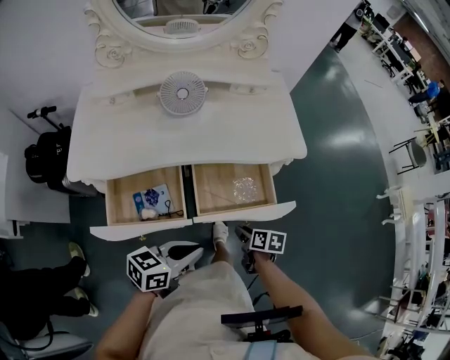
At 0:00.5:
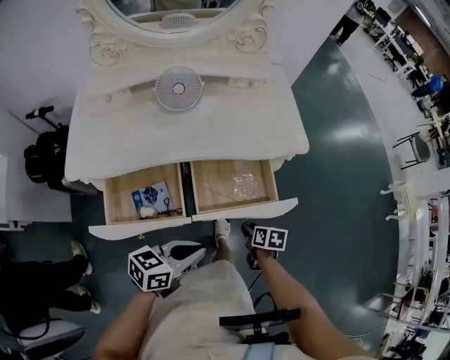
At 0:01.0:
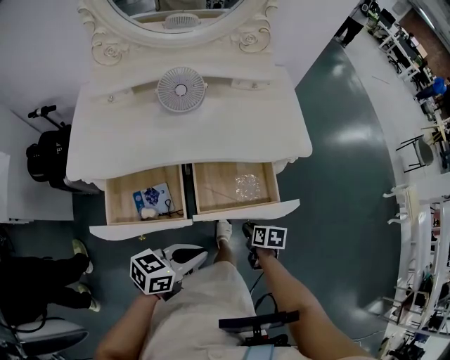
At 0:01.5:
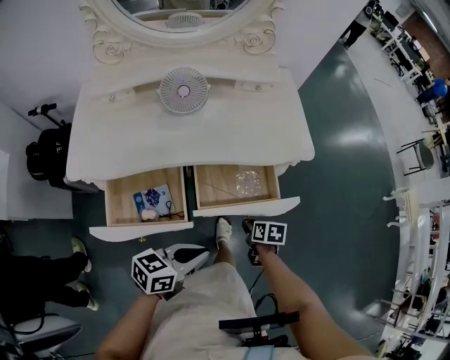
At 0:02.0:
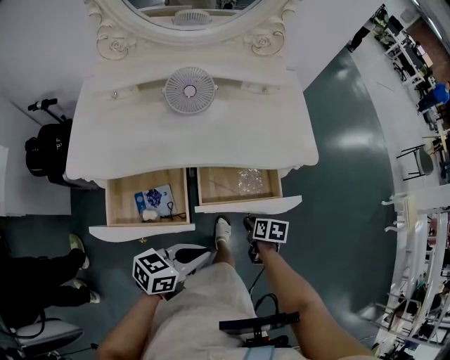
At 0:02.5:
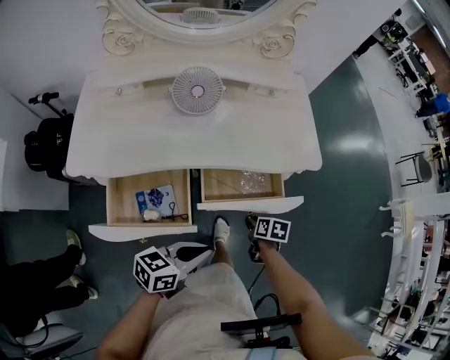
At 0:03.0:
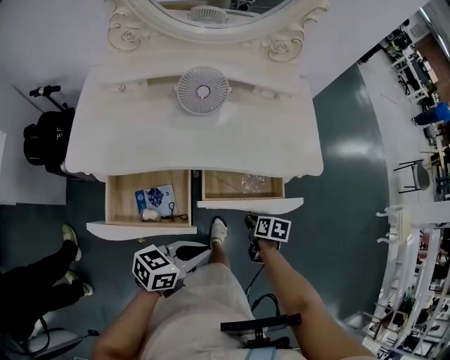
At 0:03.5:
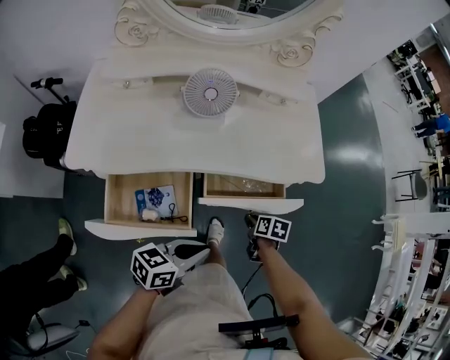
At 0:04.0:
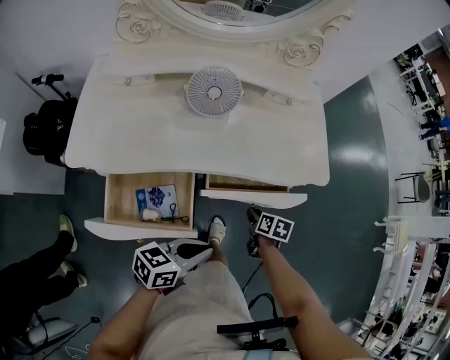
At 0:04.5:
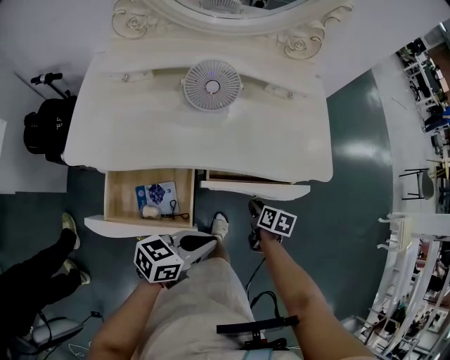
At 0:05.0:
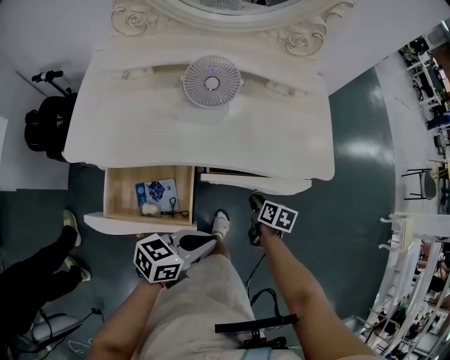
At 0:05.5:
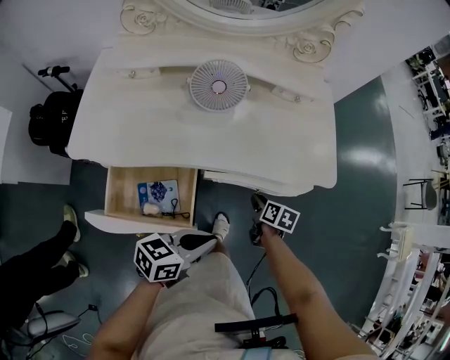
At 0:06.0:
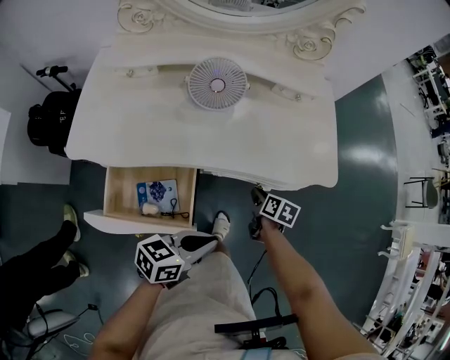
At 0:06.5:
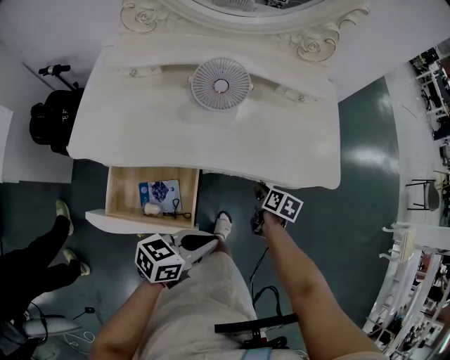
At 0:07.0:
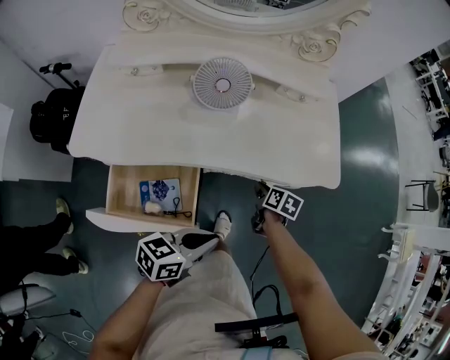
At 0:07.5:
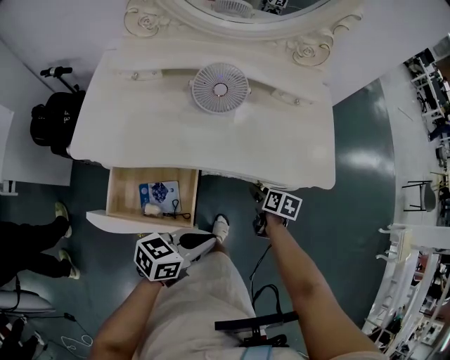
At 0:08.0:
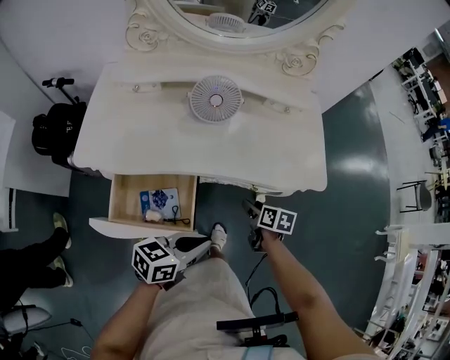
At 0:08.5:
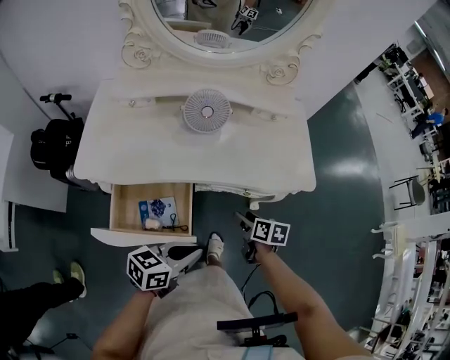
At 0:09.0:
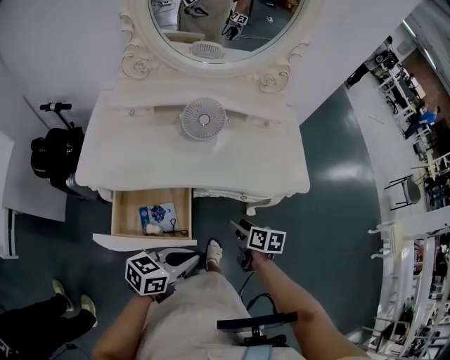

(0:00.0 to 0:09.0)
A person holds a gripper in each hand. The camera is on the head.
0:00.0 - 0:02.0: The right gripper heads forward, covering approximately 5 cm.
0:02.0 - 0:04.5: The grippers both shift forward by about 5 cm.
0:04.5 - 0:07.0: The right gripper travels forward by some 5 cm.
0:07.0 - 0:09.0: The right gripper travels backward and upward by some 15 cm, and opens. Meanwhile the left gripper shifts some 5 cm backward.

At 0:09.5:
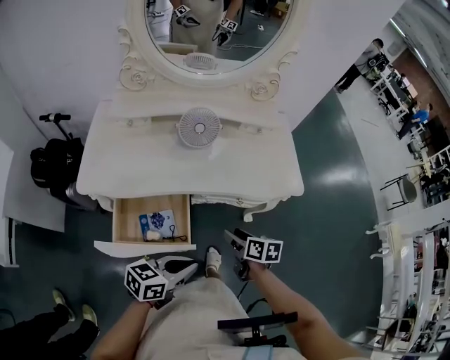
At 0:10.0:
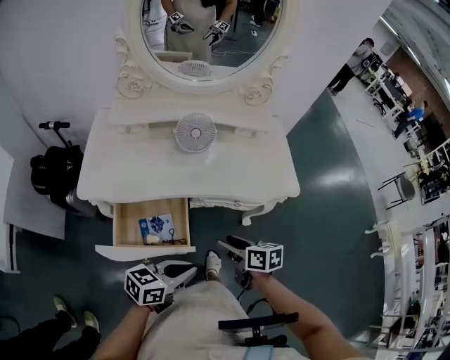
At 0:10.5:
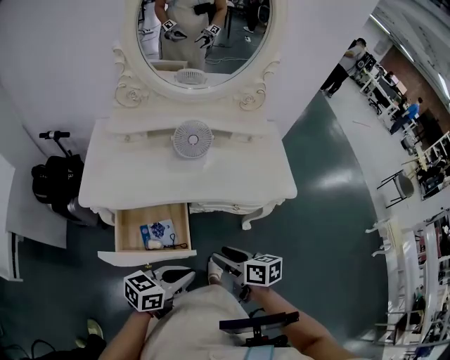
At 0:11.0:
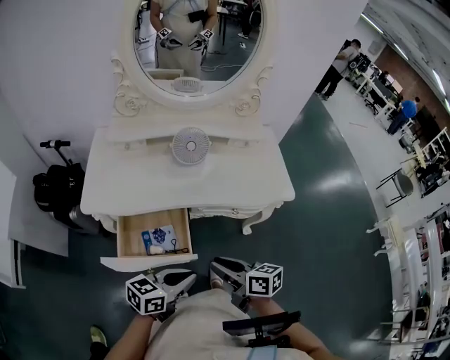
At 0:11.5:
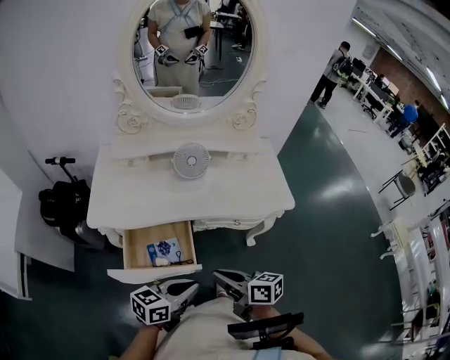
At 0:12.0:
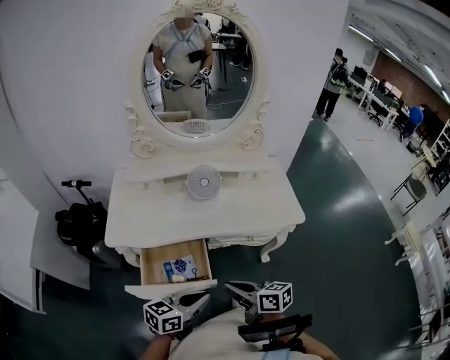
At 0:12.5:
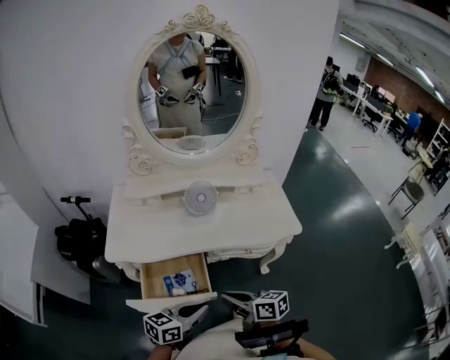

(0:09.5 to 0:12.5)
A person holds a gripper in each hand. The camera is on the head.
0:09.5 - 0:11.0: The right gripper moves upward, backward and to the left, roughly 15 cm, changes its angle by some 20 degrees, and closes up.
0:11.0 - 0:12.5: The right gripper closes.

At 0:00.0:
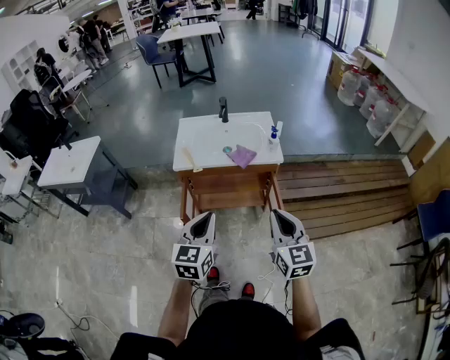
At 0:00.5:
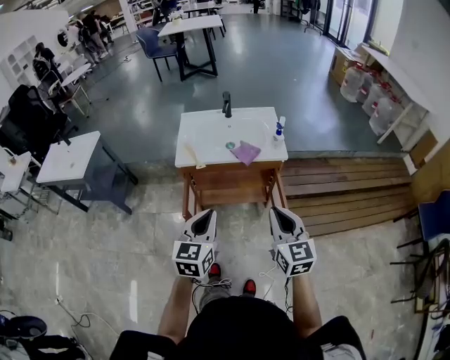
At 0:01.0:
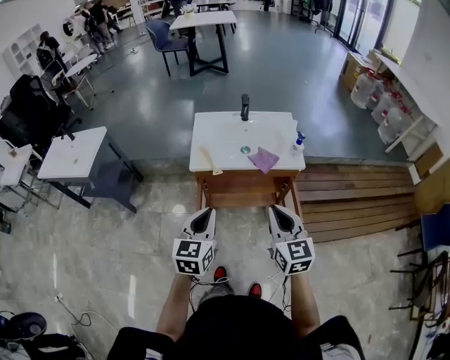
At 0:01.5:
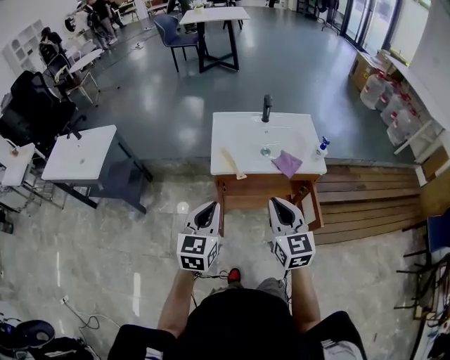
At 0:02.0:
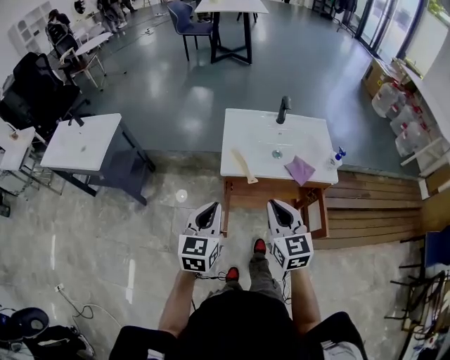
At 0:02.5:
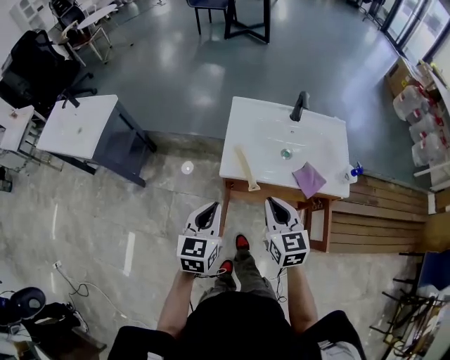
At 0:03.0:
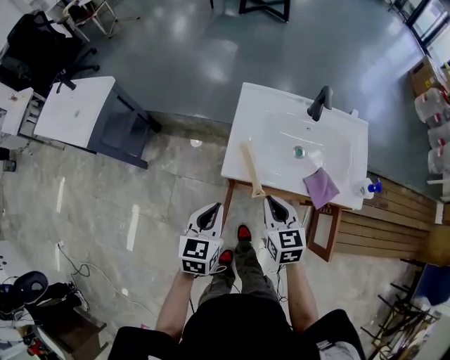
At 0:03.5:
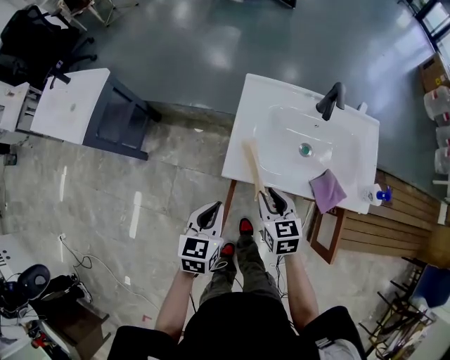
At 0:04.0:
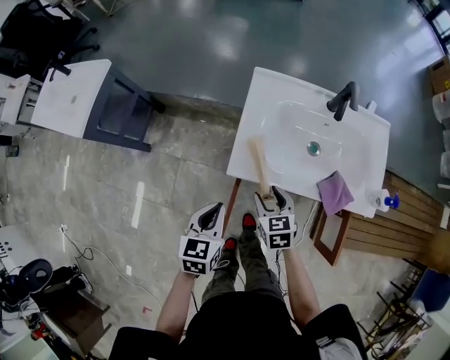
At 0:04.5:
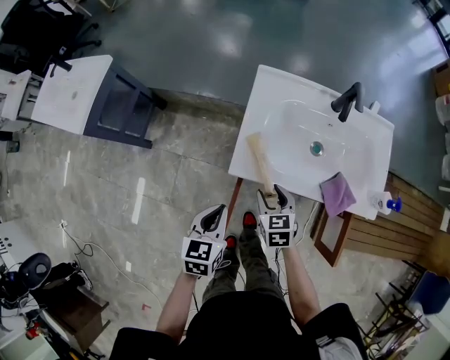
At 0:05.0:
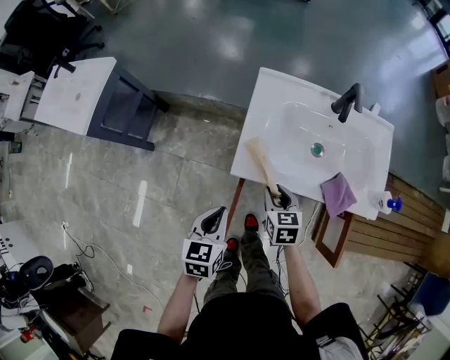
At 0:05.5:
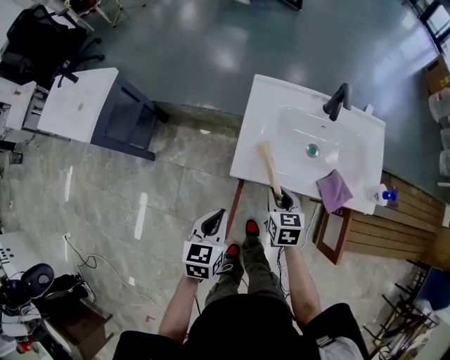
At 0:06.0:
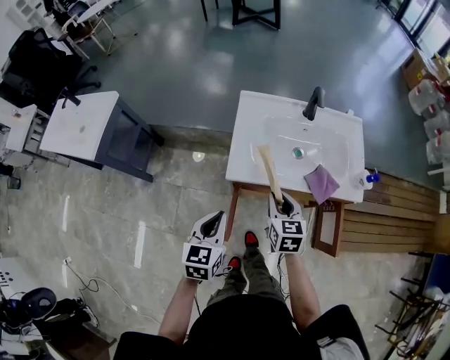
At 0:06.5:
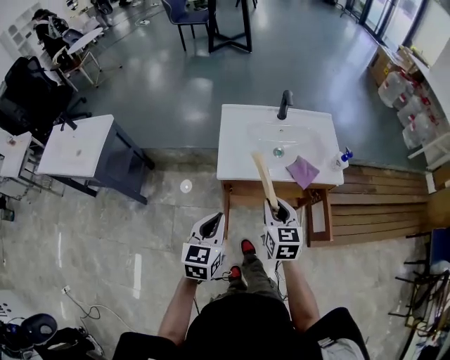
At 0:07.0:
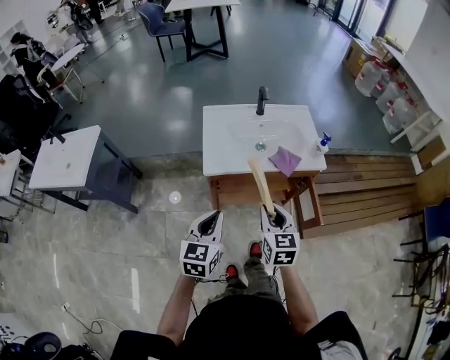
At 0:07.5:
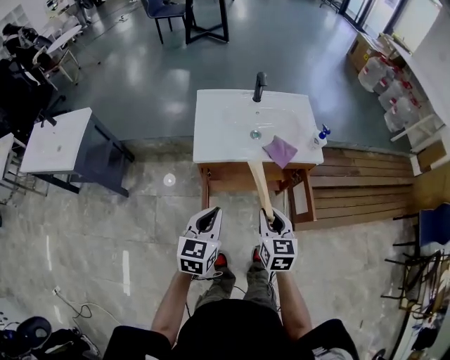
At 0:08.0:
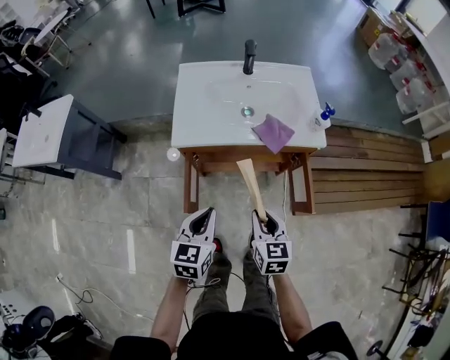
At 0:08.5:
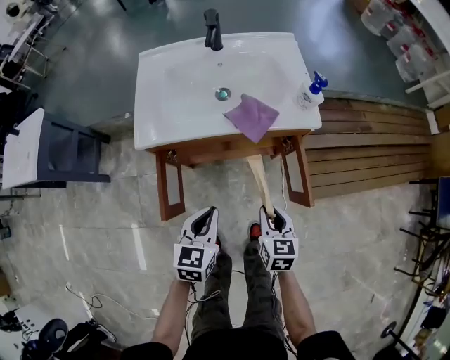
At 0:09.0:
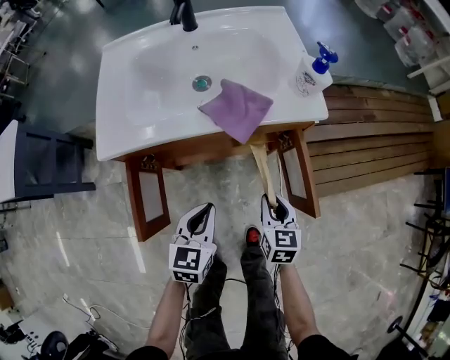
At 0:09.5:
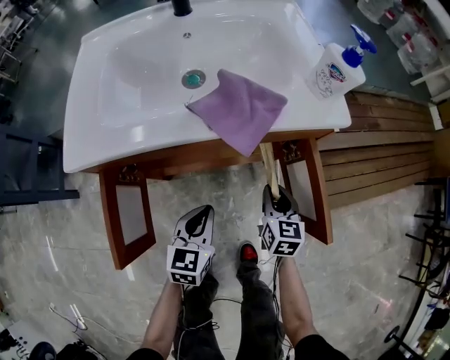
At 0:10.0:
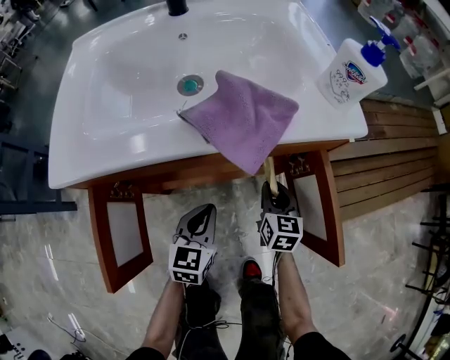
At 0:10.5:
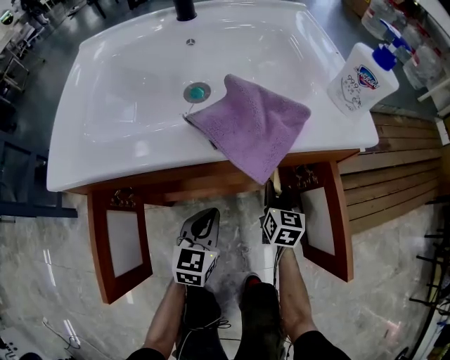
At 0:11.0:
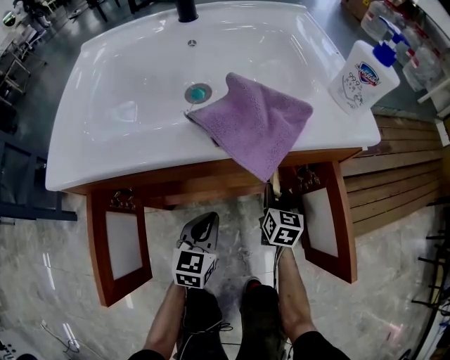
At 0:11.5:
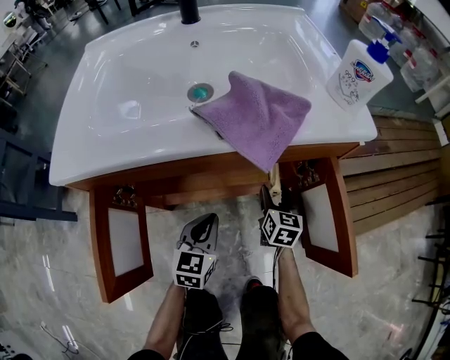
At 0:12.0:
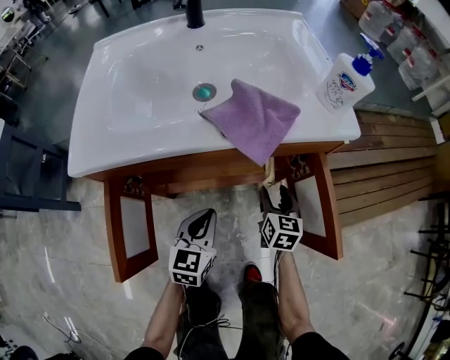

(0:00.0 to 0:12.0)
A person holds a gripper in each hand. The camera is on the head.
0:00.0 - 0:02.0: Both grippers travel together to the left and forward, about 30 cm.
0:02.0 - 0:04.0: The two grippers go approximately 30 cm downward and forward. The left gripper rotates roughly 20 degrees, while the right gripper tips its fingers downward by about 30 degrees, and opens up.
0:04.0 - 0:06.0: Both grippers move upward, approximately 10 cm. The right gripper rotates some 20 degrees, and closes its fingers.
0:06.0 - 0:08.0: The left gripper travels to the right and backward by about 15 cm. The right gripper goes roughly 25 cm backward and to the right.
0:08.0 - 0:10.0: Both grippers travel together downward and forward, roughly 40 cm.
0:10.0 - 0:12.0: The right gripper opens its fingers.

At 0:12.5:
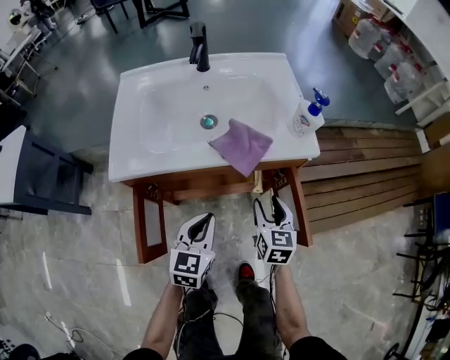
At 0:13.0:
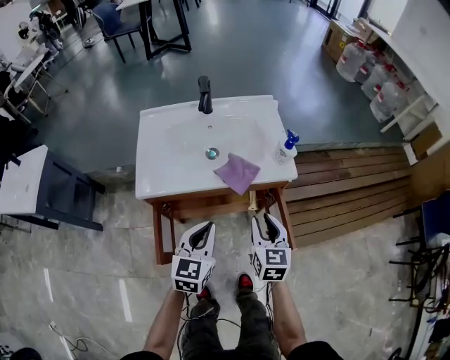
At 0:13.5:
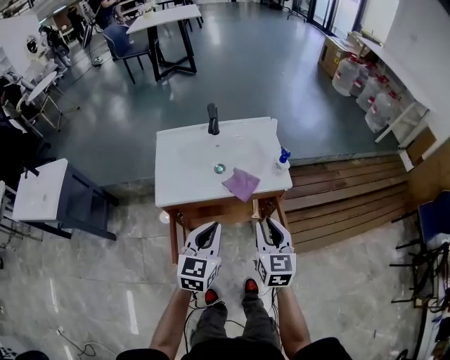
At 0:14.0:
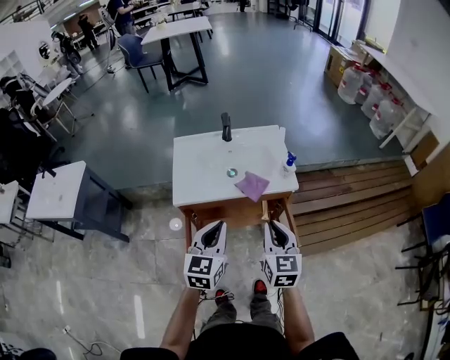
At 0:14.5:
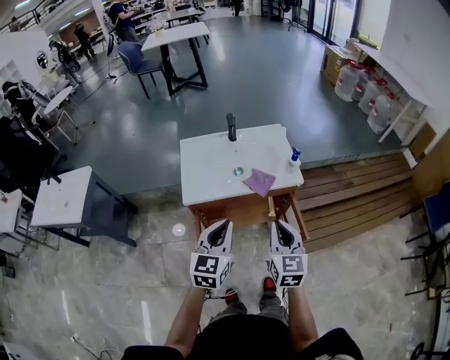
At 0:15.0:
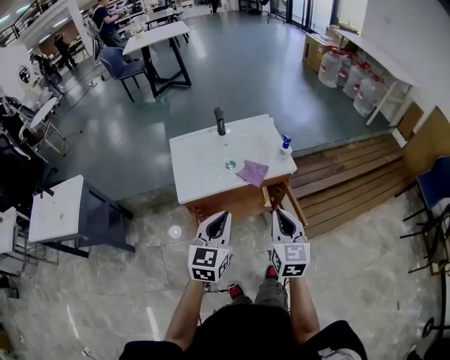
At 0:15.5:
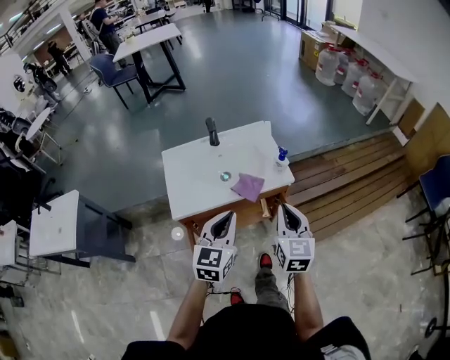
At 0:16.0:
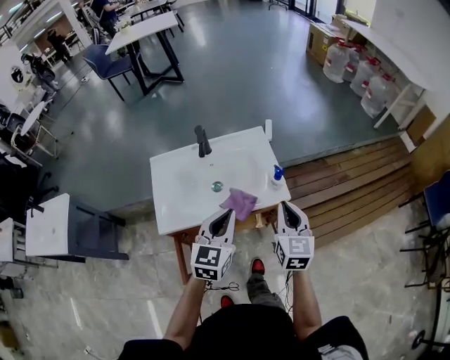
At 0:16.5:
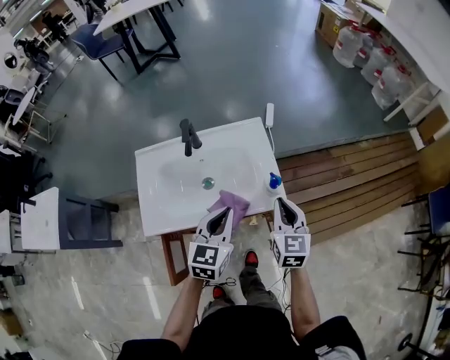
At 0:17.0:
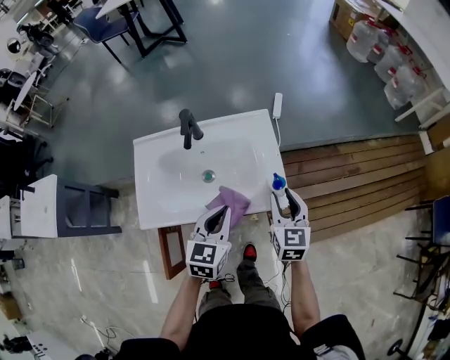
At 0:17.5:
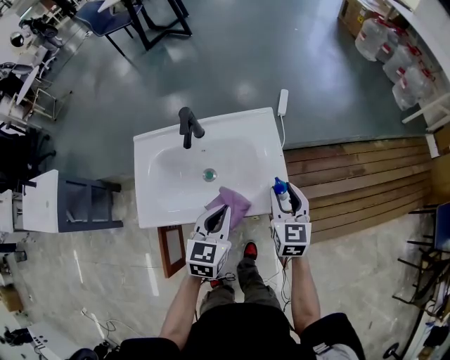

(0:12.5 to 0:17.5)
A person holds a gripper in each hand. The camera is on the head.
0:12.5 - 0:15.0: The left gripper travels upward by some 35 cm; the right gripper heads upward and backward, covering approximately 40 cm, and closes its fingers.
0:15.0 - 0:17.5: The left gripper heads forward and downward, covering approximately 30 cm, while the right gripper moves forward, some 35 cm, and opens up.
